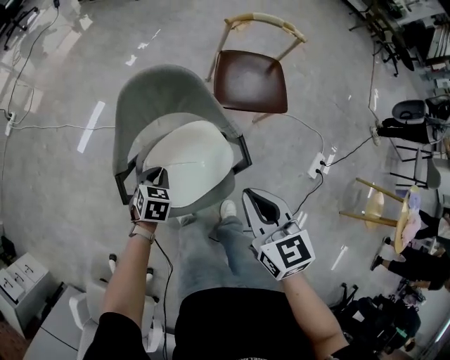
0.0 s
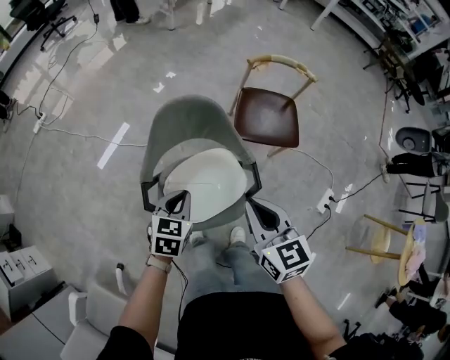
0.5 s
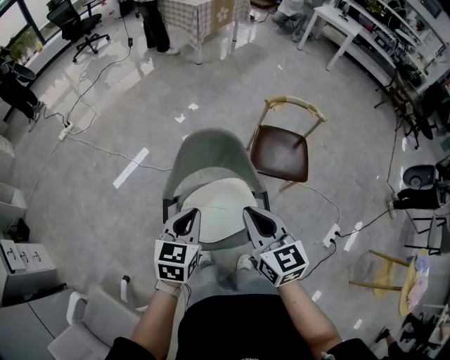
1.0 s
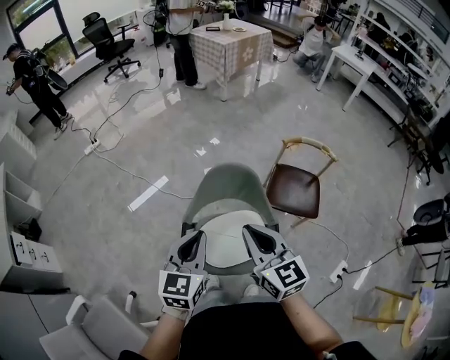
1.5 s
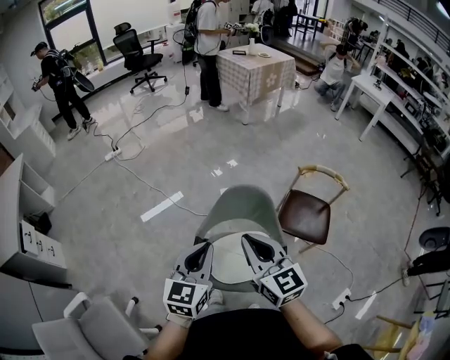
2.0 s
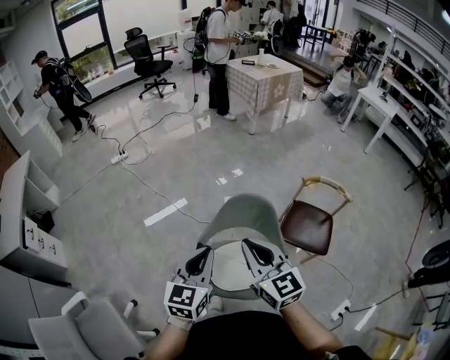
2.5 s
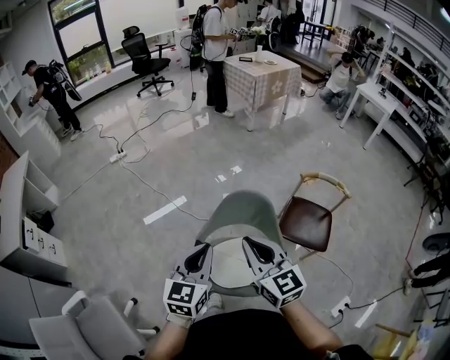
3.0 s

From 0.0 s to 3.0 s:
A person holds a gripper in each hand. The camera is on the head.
From 0.0 s to 1.5 s: The right gripper goes approximately 20 cm upward and to the left, and turns by some 30 degrees. The left gripper heads upward, covering some 40 cm, and tilts its fingers about 40 degrees upward.
From 1.5 s to 3.0 s: The right gripper changes place by approximately 5 cm.

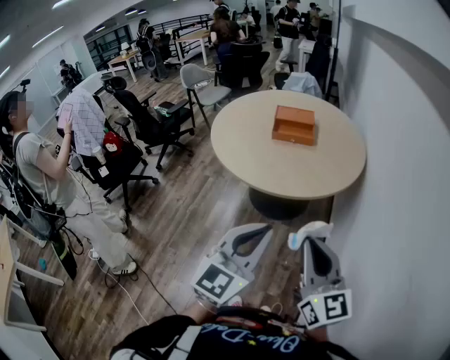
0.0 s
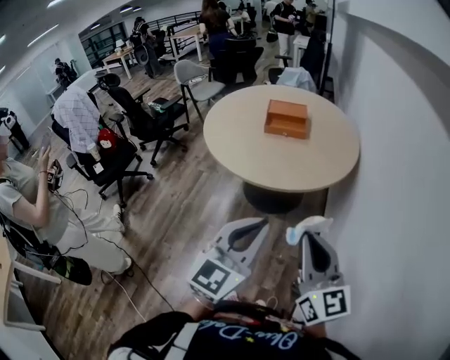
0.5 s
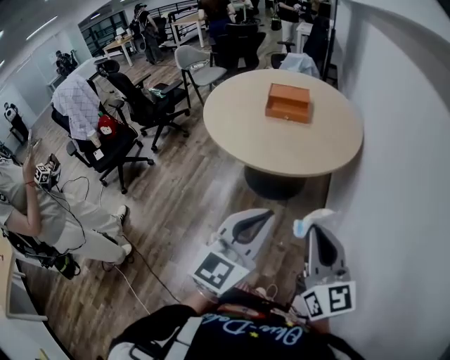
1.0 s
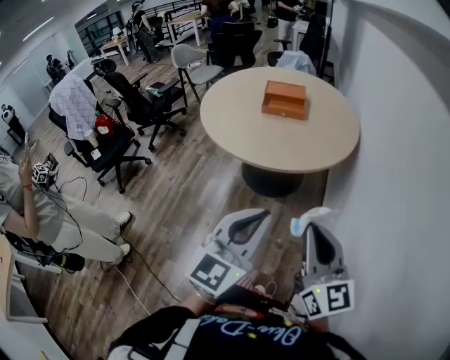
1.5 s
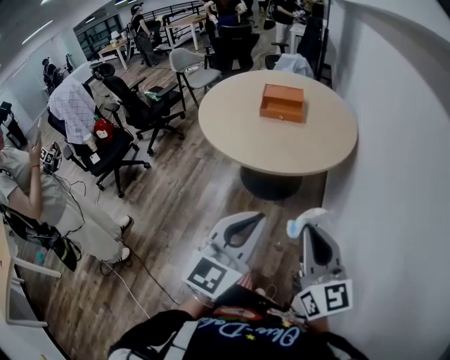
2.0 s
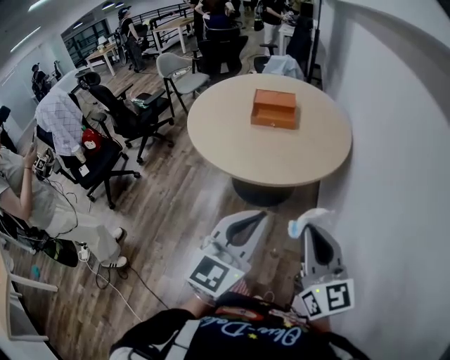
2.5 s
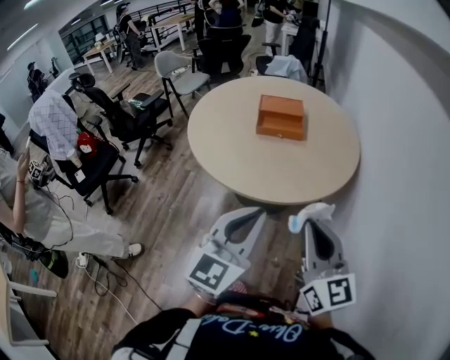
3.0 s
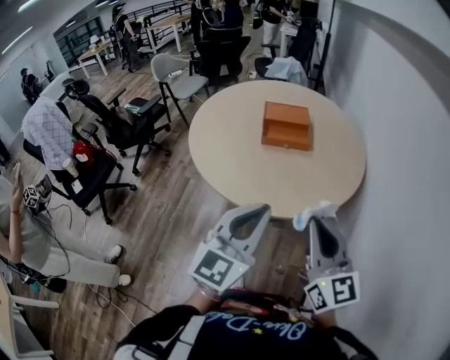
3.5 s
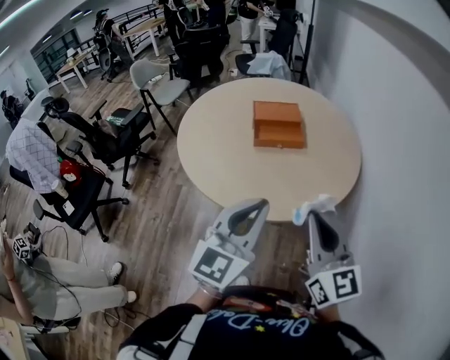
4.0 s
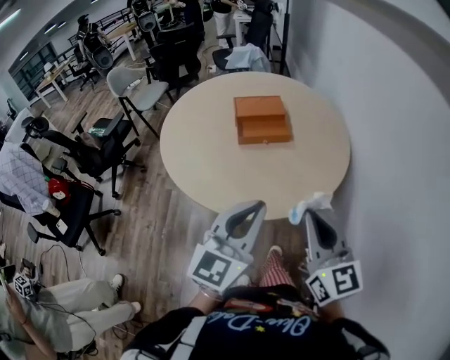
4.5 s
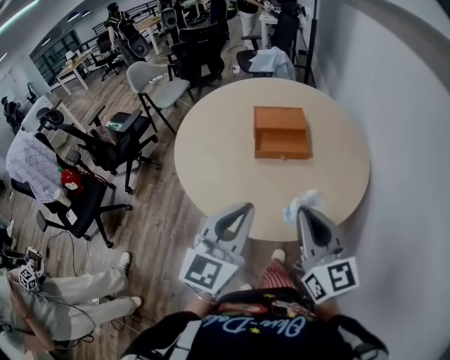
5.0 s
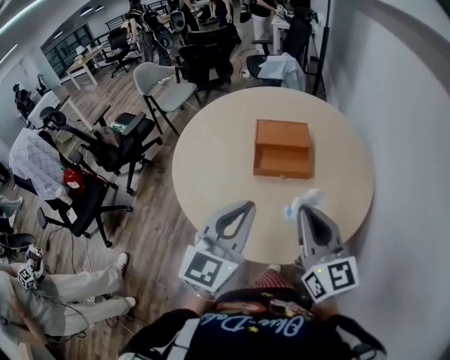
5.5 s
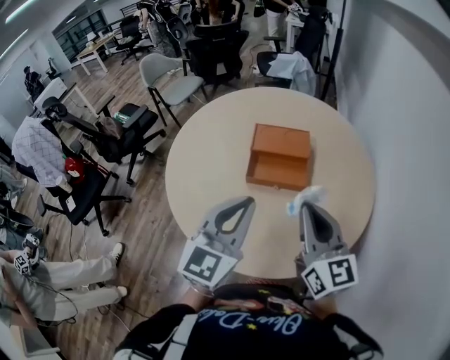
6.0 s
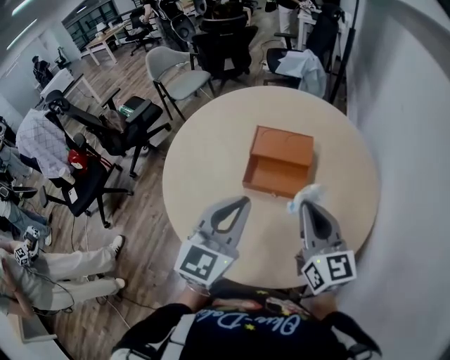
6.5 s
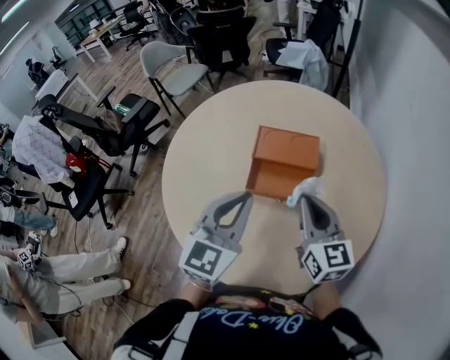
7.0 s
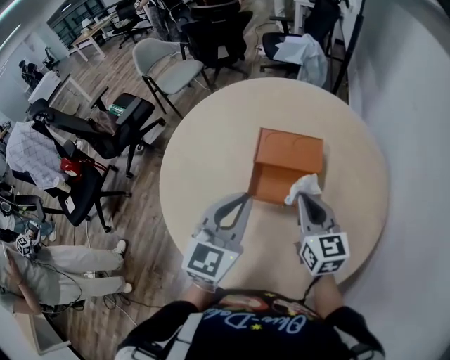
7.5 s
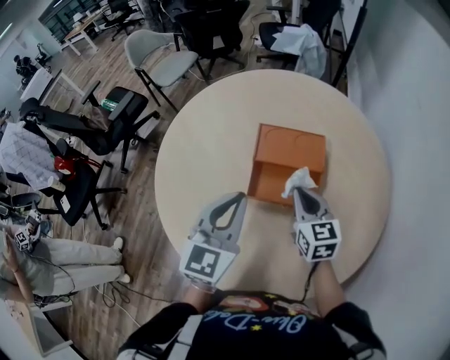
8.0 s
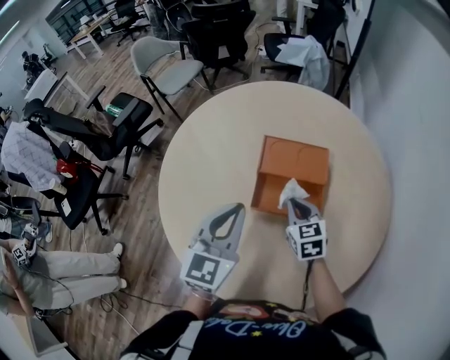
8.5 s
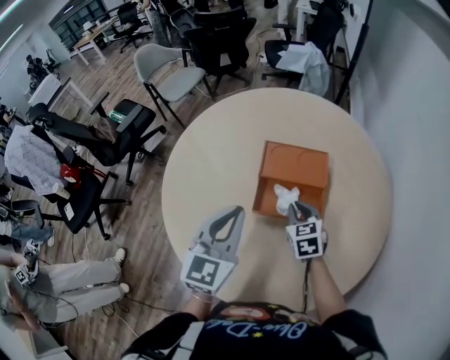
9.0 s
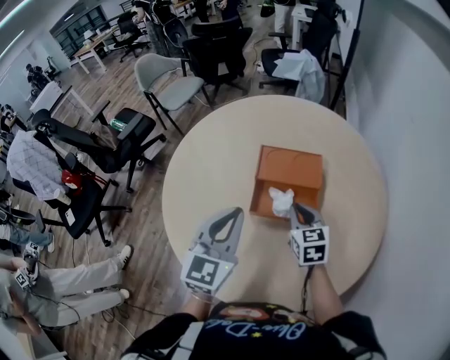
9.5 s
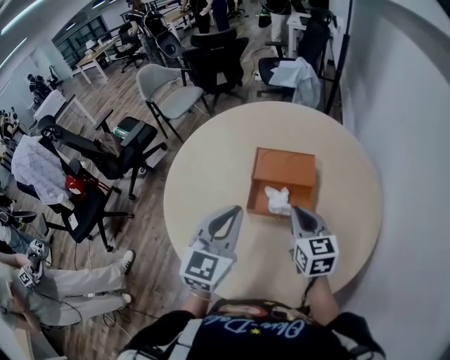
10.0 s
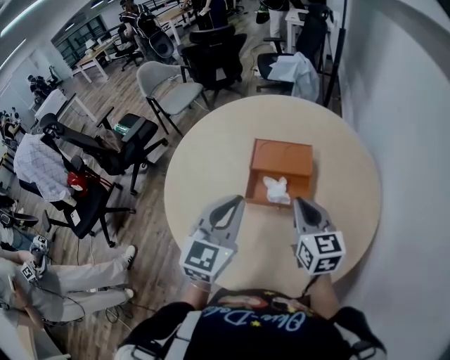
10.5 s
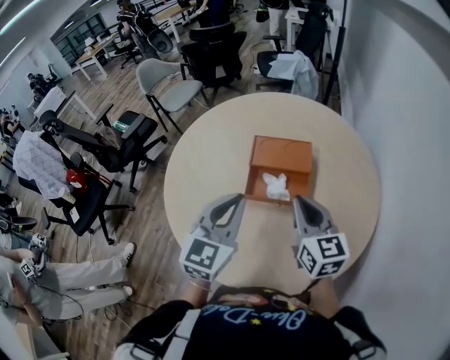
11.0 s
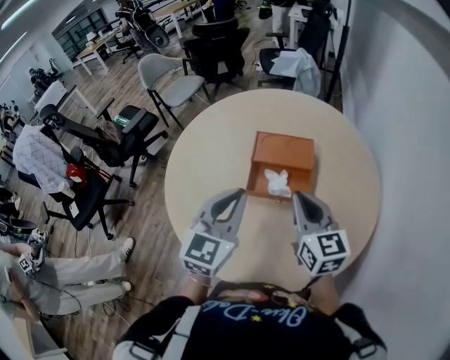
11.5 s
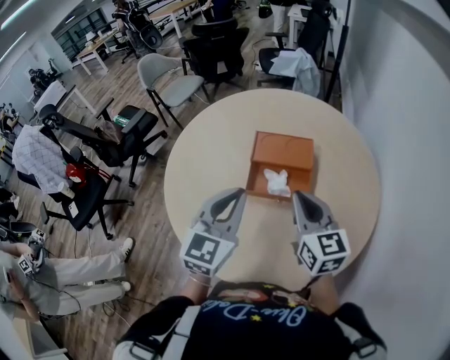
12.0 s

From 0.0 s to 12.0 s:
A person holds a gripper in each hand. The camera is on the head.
From 0.0 s to 2.0 s: The right gripper ends up about 5 cm from where it was.
From 2.0 s to 4.0 s: The two grippers go about 30 cm forward and to the left.
From 4.0 s to 6.0 s: The grippers both shift forward by approximately 25 cm.
From 6.0 s to 8.0 s: The left gripper travels forward and downward by approximately 20 cm, while the right gripper heads forward and downward, covering roughly 25 cm, and turns by roughly 30 degrees.
From 8.0 s to 10.0 s: The right gripper shifts by some 5 cm.
From 10.0 s to 12.0 s: The right gripper is displaced upward by about 10 cm.

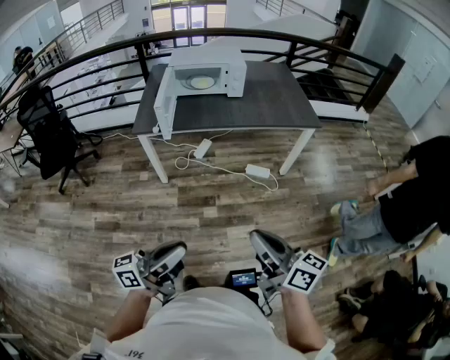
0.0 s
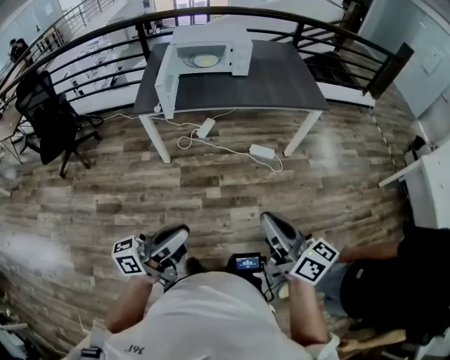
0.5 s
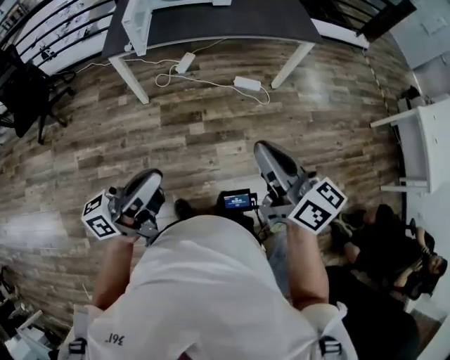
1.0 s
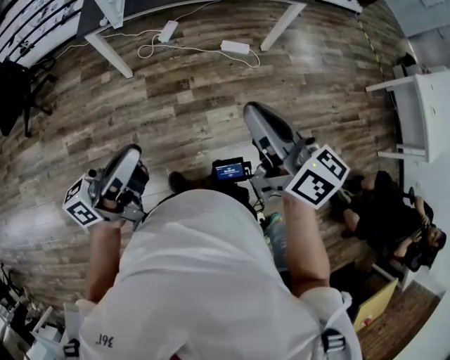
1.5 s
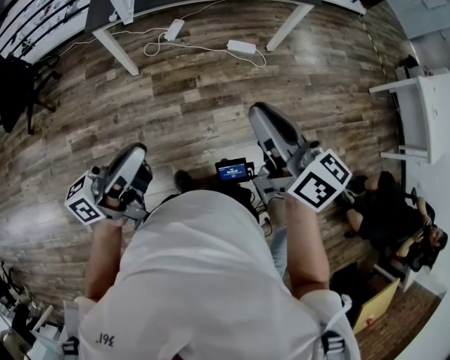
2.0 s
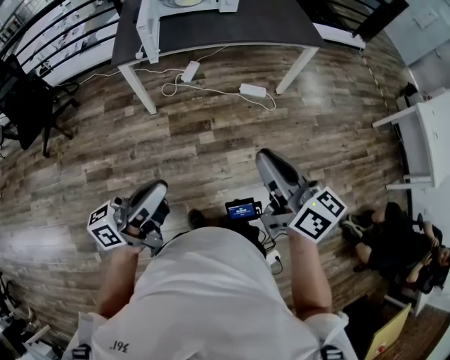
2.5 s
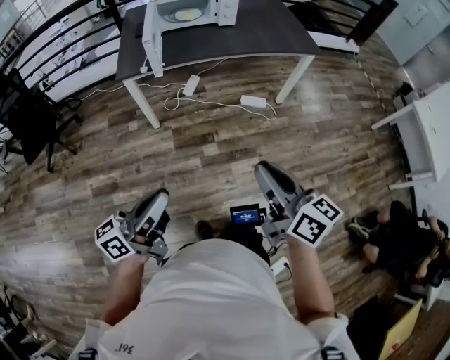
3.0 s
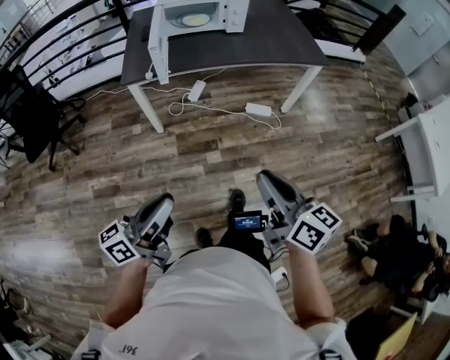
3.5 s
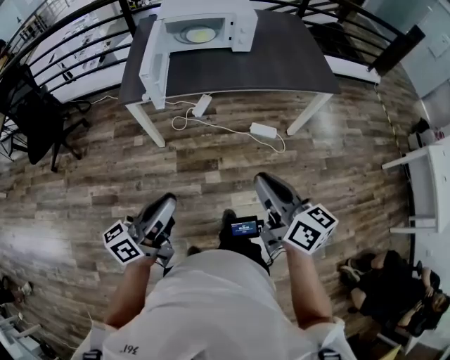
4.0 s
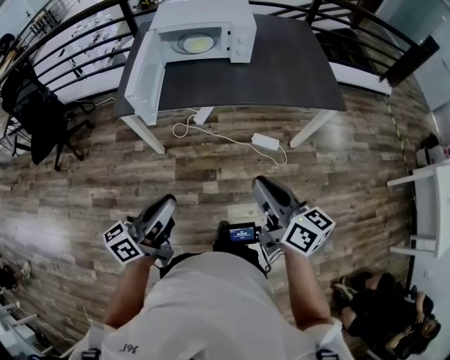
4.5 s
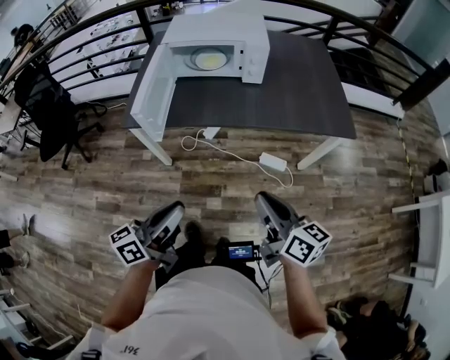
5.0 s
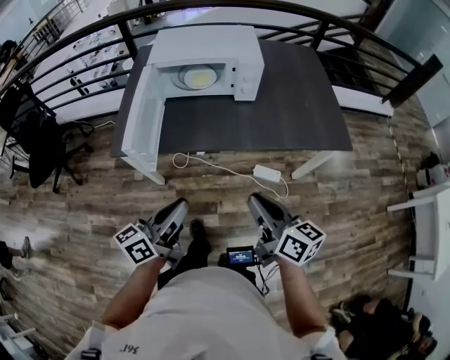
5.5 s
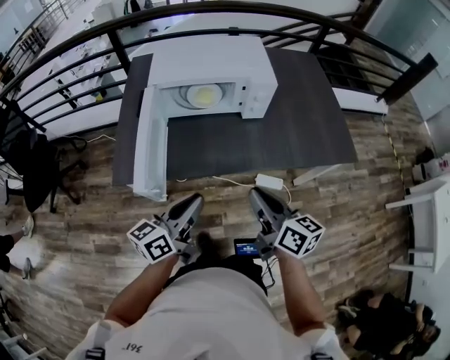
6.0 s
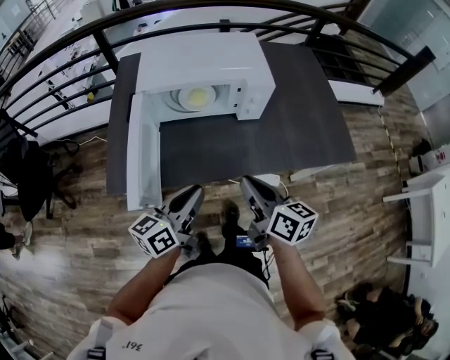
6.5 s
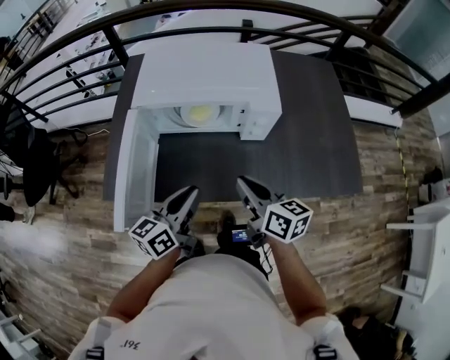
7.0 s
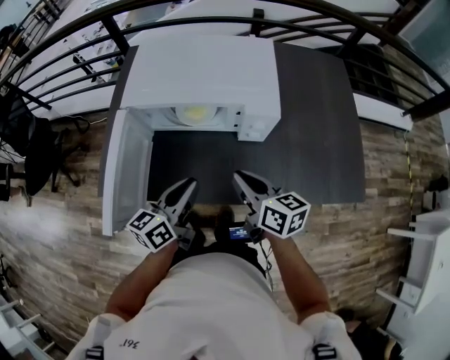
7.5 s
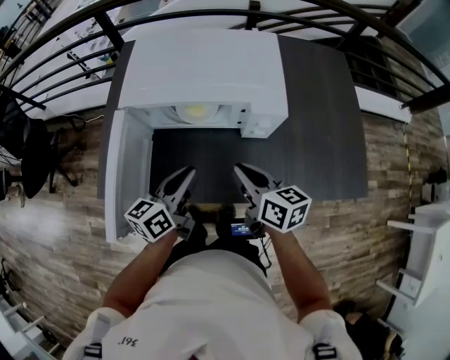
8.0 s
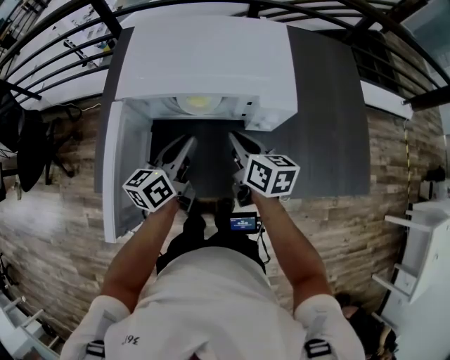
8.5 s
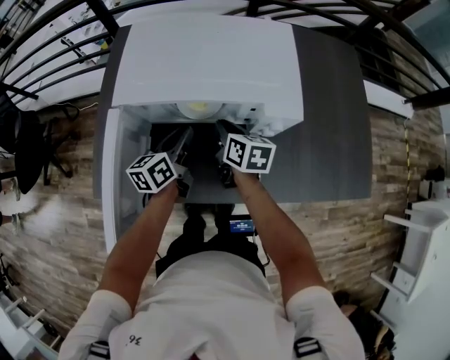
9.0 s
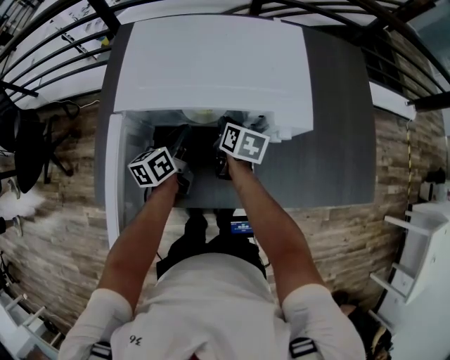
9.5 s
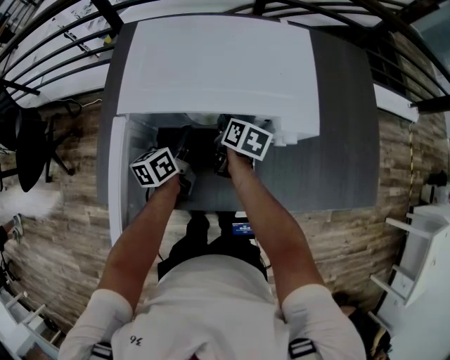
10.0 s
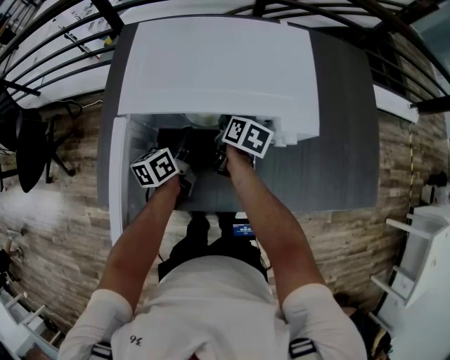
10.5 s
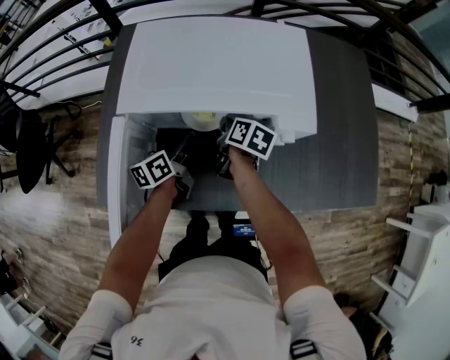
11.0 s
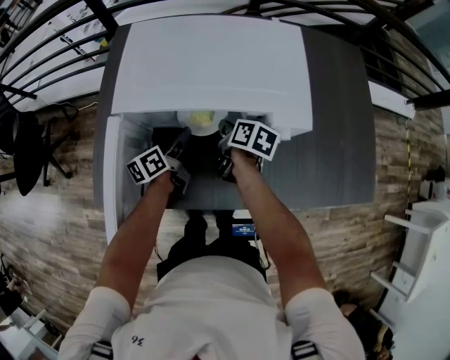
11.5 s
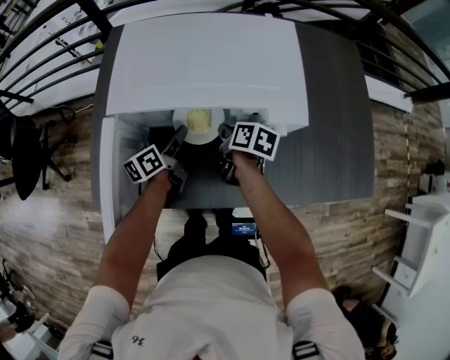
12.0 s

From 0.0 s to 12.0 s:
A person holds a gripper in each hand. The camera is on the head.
From 0.0 s to 2.0 s: The right gripper moves roughly 5 cm, while the left gripper moves to the left, approximately 5 cm.
From 2.0 s to 4.0 s: Both grippers travel together forward, roughly 15 cm.
From 4.0 s to 6.0 s: Both grippers move forward, approximately 40 cm.
From 6.0 s to 8.0 s: Both grippers move forward, some 25 cm.
From 8.0 s to 10.0 s: The two grippers go roughly 20 cm forward and downward. The right gripper swivels roughly 30 degrees.
From 10.0 s to 12.0 s: The left gripper opens its fingers.
